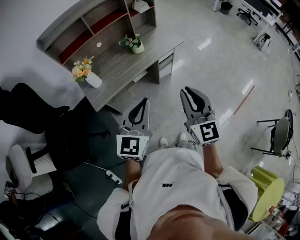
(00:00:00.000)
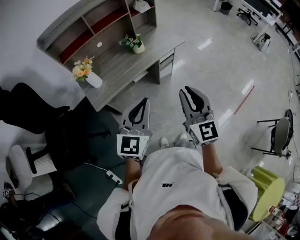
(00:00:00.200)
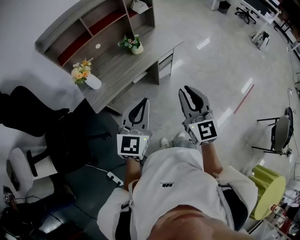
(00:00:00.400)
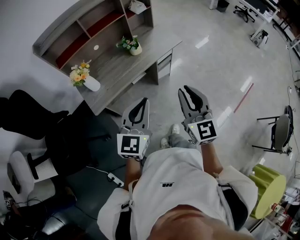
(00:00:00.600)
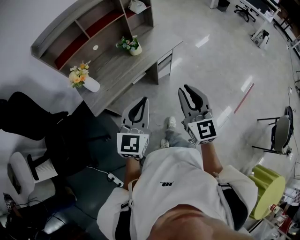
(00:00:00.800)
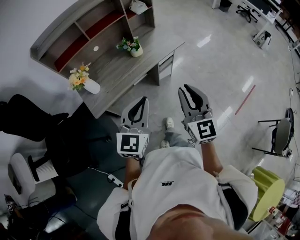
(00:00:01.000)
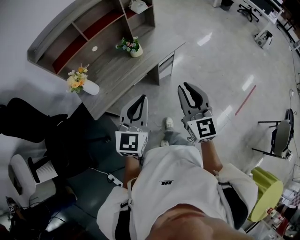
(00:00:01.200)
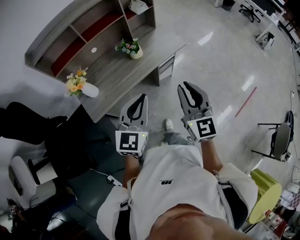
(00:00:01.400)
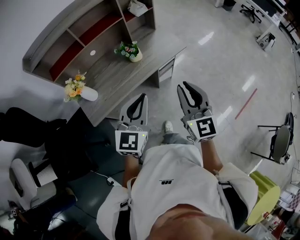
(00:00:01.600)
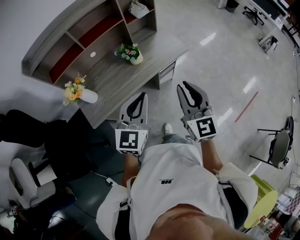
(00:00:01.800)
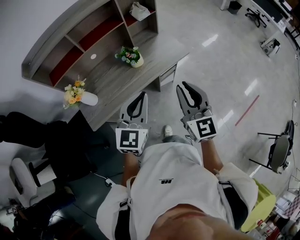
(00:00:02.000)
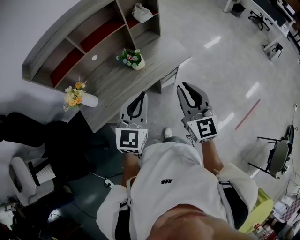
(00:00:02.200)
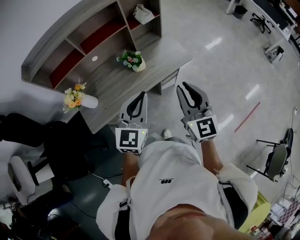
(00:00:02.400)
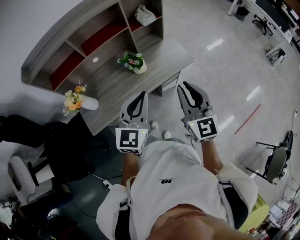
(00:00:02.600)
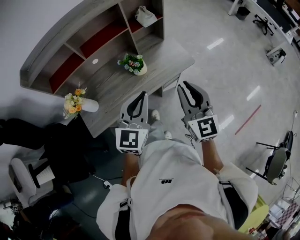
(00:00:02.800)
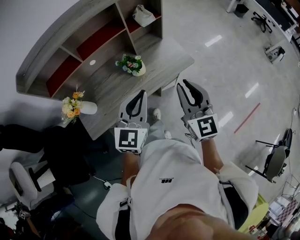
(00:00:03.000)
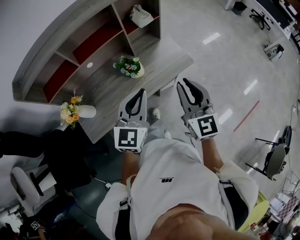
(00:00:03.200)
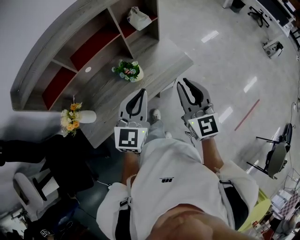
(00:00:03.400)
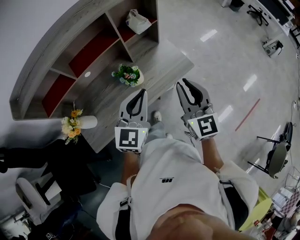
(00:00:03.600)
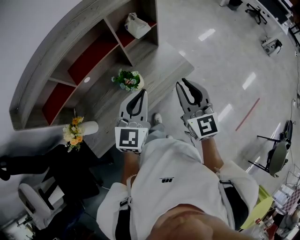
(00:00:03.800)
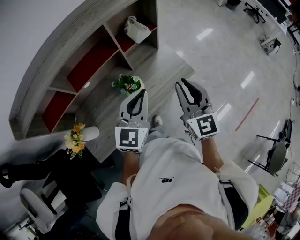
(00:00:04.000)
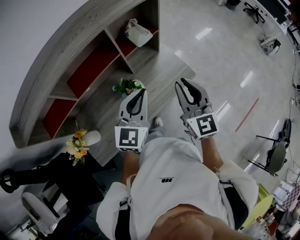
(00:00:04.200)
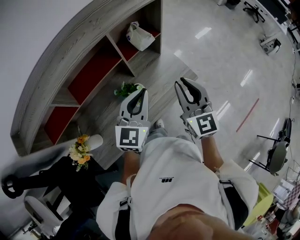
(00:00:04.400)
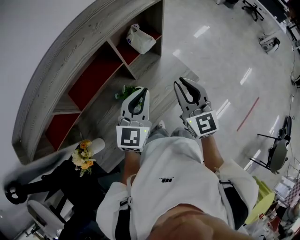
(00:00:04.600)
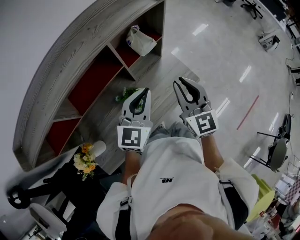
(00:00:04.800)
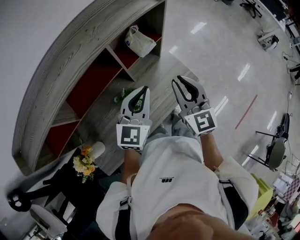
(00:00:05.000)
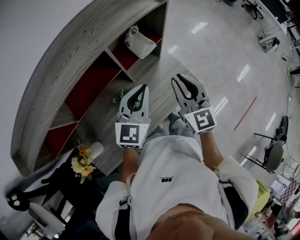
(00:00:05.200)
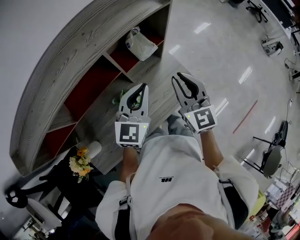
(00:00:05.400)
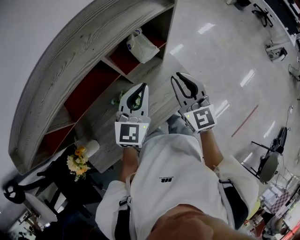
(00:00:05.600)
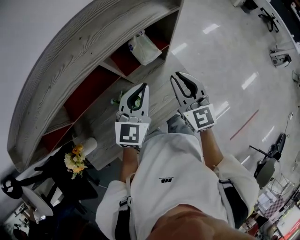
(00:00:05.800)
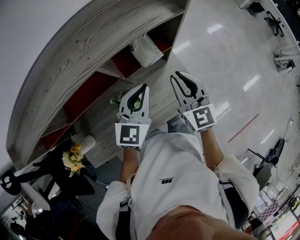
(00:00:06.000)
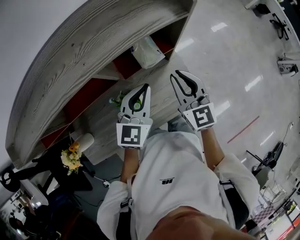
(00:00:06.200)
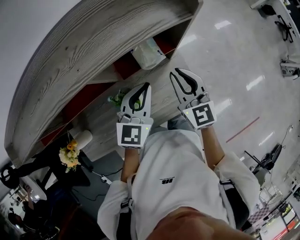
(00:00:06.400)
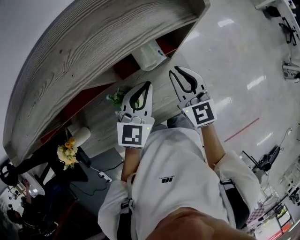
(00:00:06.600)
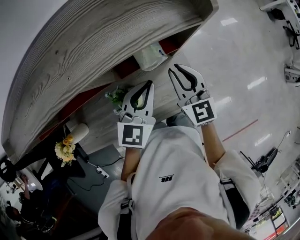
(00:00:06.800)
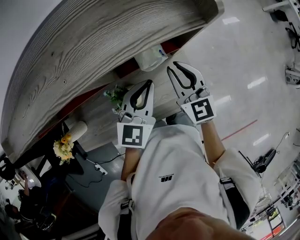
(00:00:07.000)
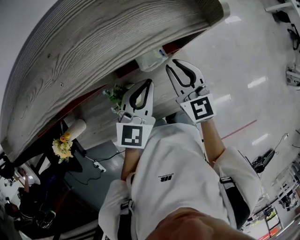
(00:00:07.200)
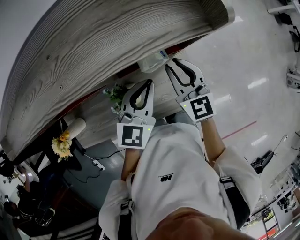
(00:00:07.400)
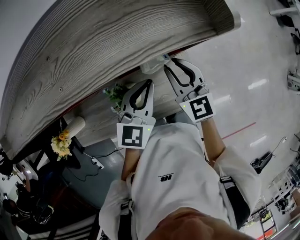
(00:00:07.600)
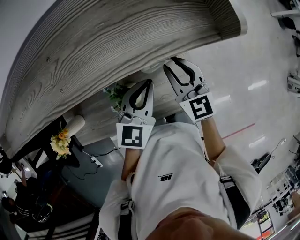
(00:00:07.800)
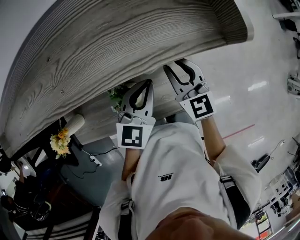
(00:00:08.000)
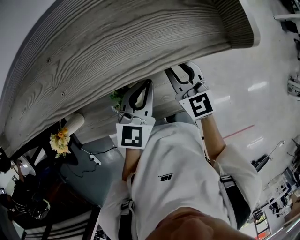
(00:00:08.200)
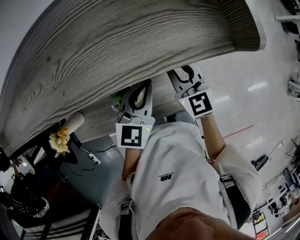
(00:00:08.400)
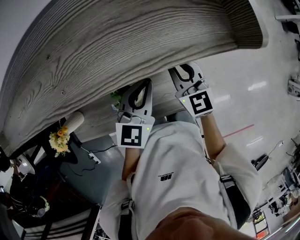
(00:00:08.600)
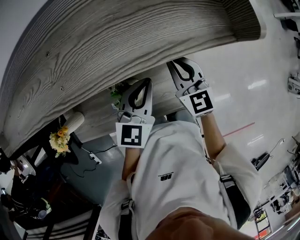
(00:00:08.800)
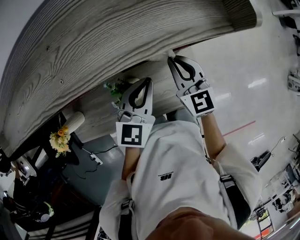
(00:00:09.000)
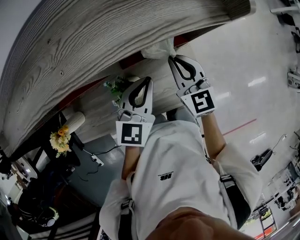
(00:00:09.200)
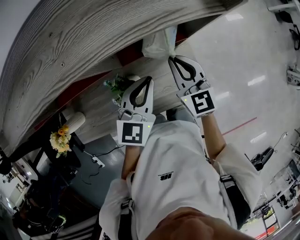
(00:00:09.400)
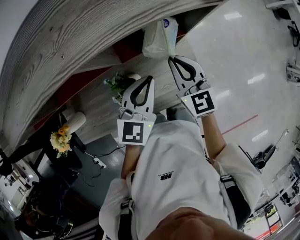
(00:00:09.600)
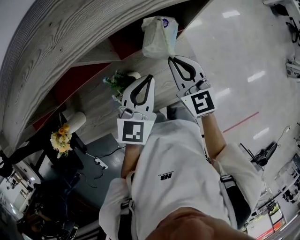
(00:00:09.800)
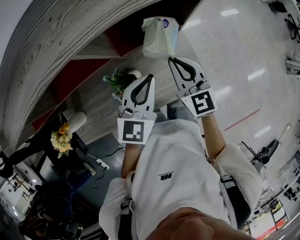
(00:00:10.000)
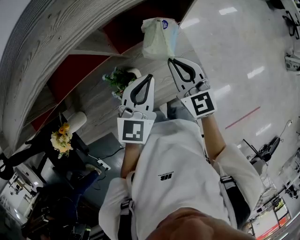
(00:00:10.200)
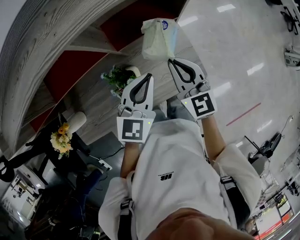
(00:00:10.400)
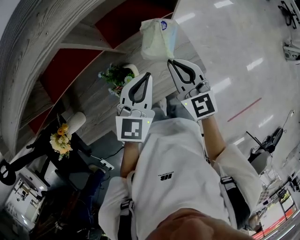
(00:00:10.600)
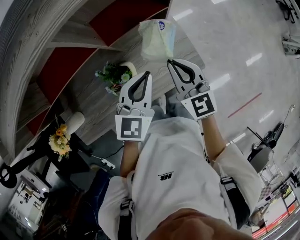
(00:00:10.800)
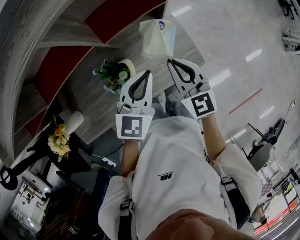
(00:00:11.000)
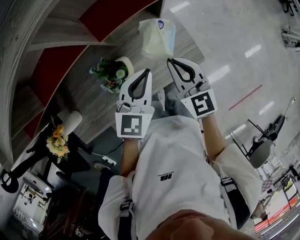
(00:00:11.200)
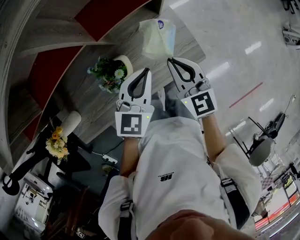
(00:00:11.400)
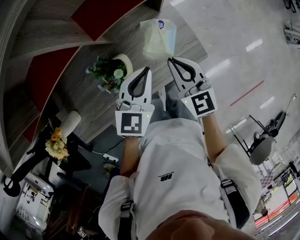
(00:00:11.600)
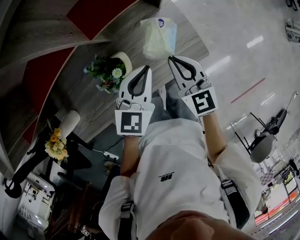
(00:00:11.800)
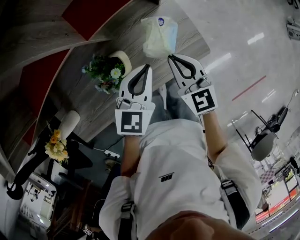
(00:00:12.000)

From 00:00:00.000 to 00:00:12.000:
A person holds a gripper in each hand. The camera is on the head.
From 00:00:00.000 to 00:00:01.600: Both grippers travel together forward, roughly 15 cm.
From 00:00:01.600 to 00:00:03.000: The grippers both shift forward by about 15 cm.
From 00:00:03.000 to 00:00:04.400: The two grippers go some 20 cm forward.
From 00:00:04.400 to 00:00:06.000: The two grippers go some 15 cm forward.
From 00:00:06.000 to 00:00:07.600: The right gripper moves forward and downward, roughly 10 cm. Meanwhile the left gripper moves forward, roughly 5 cm.
From 00:00:07.600 to 00:00:09.000: The grippers stay close to where they were, moving slightly.
From 00:00:09.000 to 00:00:10.400: The grippers both shift backward by about 10 cm.
From 00:00:10.400 to 00:00:12.000: The left gripper shifts roughly 10 cm downward; the right gripper travels downward and backward by approximately 15 cm.

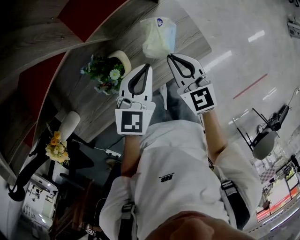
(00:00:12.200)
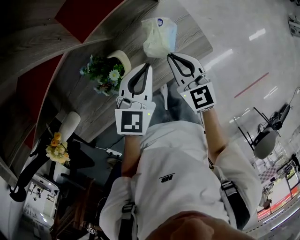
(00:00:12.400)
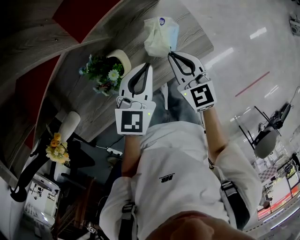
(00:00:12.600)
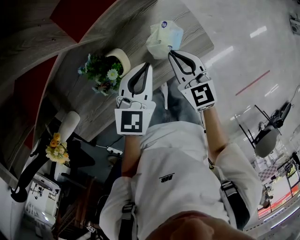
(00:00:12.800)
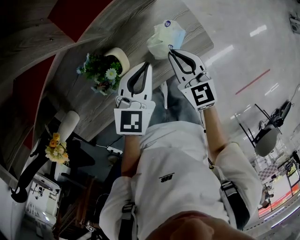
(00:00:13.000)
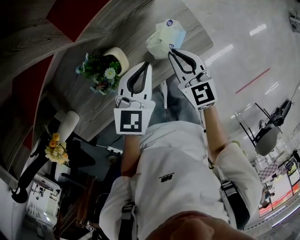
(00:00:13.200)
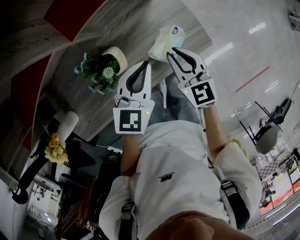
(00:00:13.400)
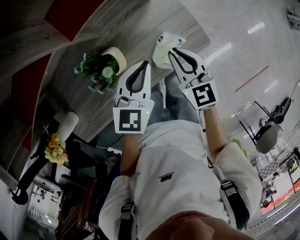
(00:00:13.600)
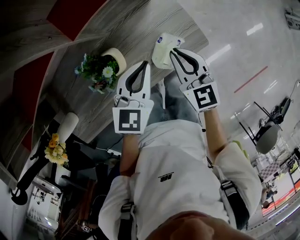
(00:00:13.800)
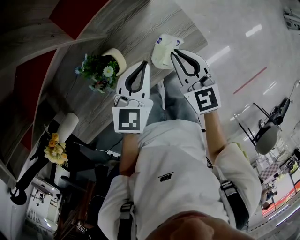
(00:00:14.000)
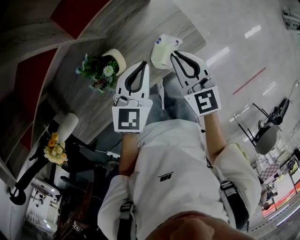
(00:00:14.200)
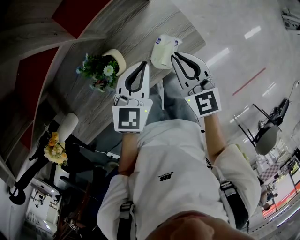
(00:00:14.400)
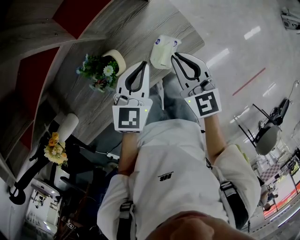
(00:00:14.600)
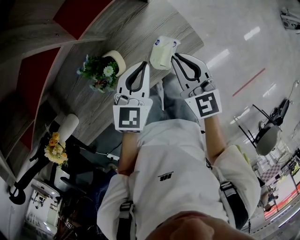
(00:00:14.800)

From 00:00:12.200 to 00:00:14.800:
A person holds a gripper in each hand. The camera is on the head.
From 00:00:12.200 to 00:00:13.400: The grippers stay close to where they were, moving slightly.
From 00:00:13.400 to 00:00:14.800: The right gripper heads upward, covering about 10 cm.

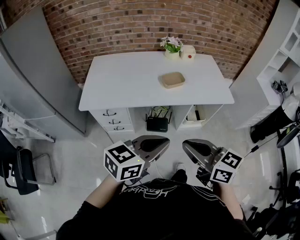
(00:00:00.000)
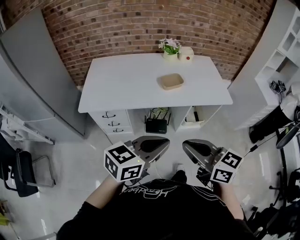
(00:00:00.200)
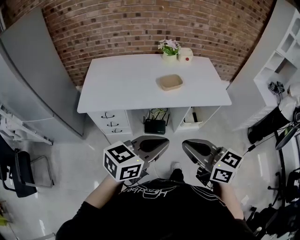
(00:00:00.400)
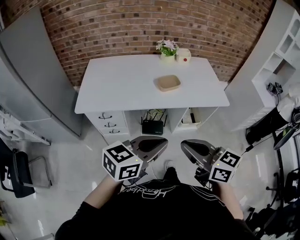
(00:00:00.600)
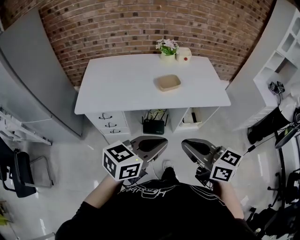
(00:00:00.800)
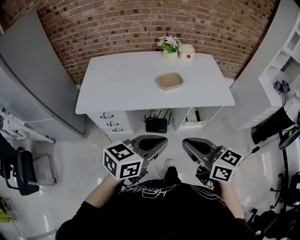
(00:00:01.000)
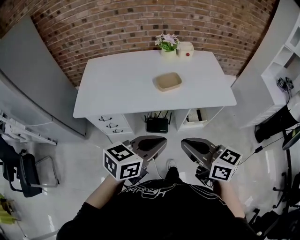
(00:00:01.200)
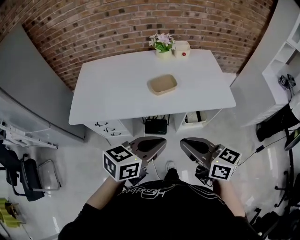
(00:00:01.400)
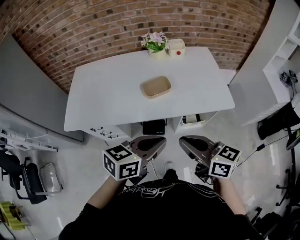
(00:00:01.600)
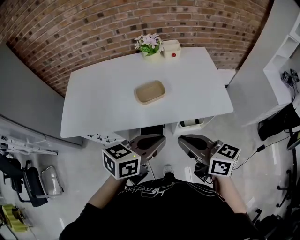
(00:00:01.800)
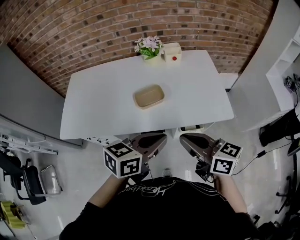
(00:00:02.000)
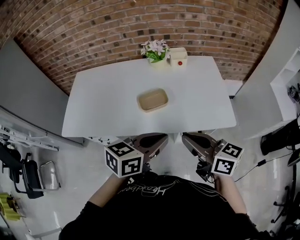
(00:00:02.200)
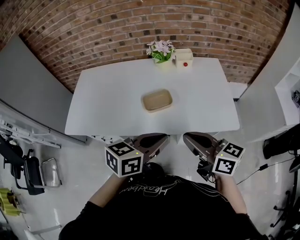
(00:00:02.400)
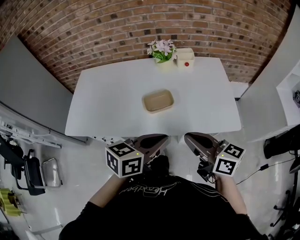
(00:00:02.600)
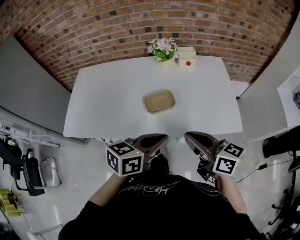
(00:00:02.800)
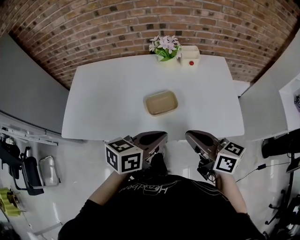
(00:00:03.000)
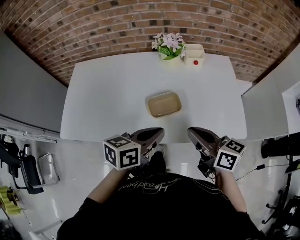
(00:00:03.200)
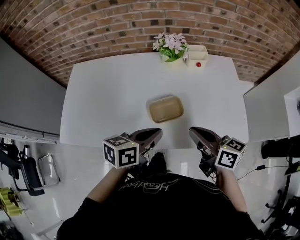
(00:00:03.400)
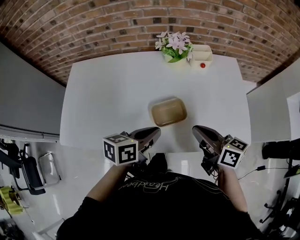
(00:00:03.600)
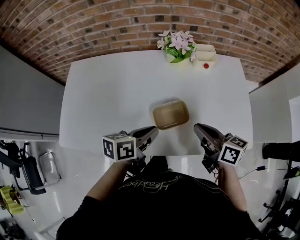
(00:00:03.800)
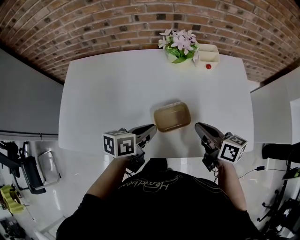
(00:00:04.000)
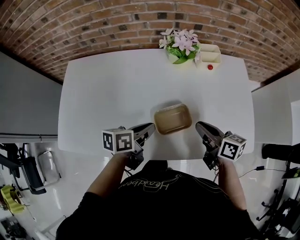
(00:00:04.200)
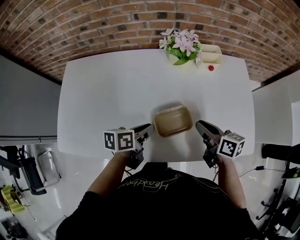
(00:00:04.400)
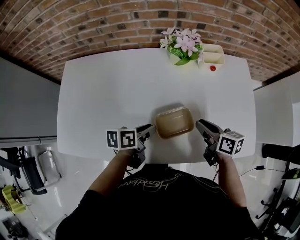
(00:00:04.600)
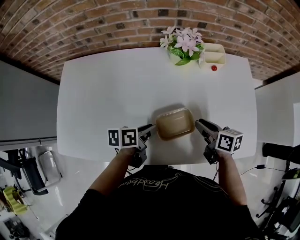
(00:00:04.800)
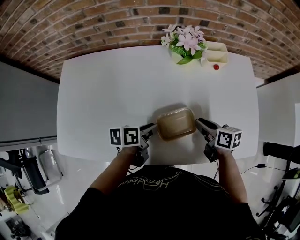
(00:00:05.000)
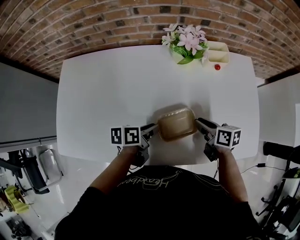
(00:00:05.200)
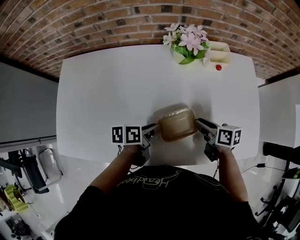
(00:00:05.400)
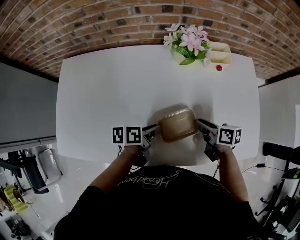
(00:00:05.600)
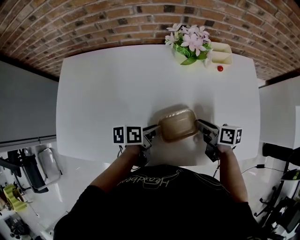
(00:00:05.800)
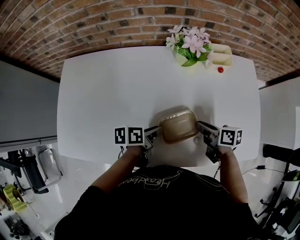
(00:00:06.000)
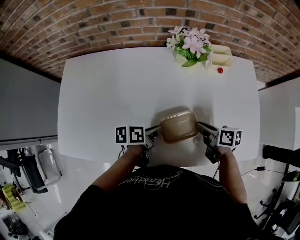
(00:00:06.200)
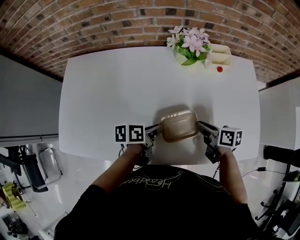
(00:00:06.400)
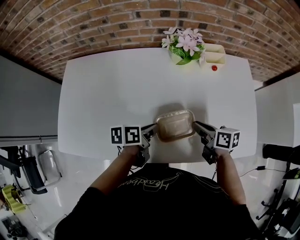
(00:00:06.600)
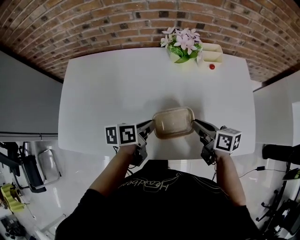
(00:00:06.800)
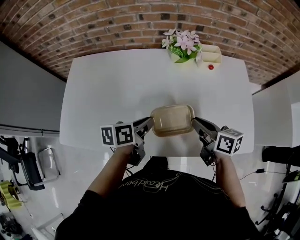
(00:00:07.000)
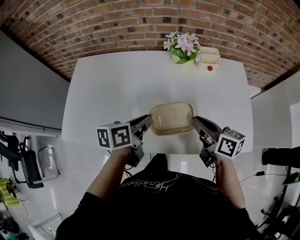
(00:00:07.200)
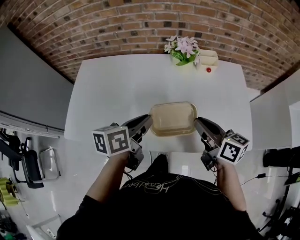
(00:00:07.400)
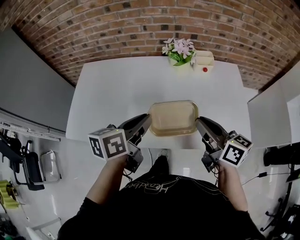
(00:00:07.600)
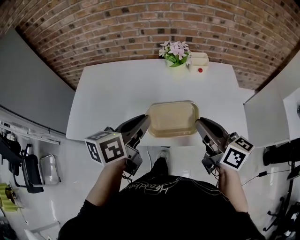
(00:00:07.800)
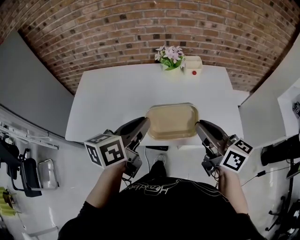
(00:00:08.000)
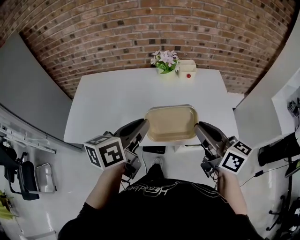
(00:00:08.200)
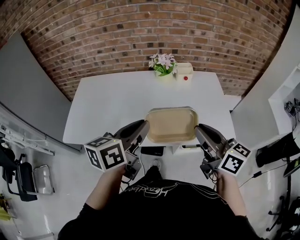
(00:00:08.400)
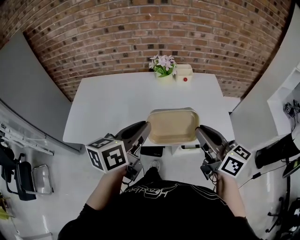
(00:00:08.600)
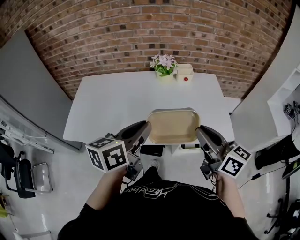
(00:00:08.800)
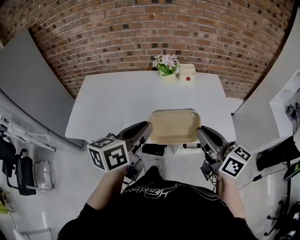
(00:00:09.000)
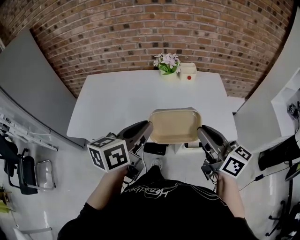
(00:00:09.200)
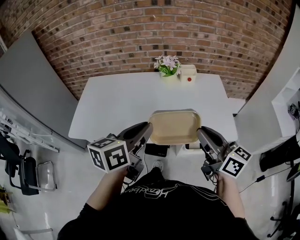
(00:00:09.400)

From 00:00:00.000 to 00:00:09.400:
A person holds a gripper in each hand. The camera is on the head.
From 00:00:00.000 to 00:00:01.600: The two grippers go some 20 cm forward and to the right.
From 00:00:01.600 to 00:00:03.200: The two grippers go approximately 20 cm forward.
From 00:00:03.200 to 00:00:04.800: The left gripper moves downward, forward and to the left, about 25 cm, changes its angle by about 30 degrees, and opens. The right gripper is displaced downward and forward by about 25 cm, rotates some 20 degrees, and opens its fingers.
From 00:00:04.800 to 00:00:06.200: There are only small adjustments of the grippers.
From 00:00:06.200 to 00:00:07.800: The grippers both shift upward and backward by about 30 cm. The left gripper turns by roughly 40 degrees; the right gripper turns by about 40 degrees.
From 00:00:07.800 to 00:00:09.400: The right gripper travels backward by about 10 cm. The left gripper heads backward and upward, covering approximately 10 cm.
